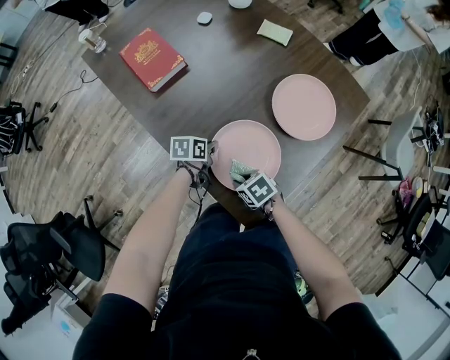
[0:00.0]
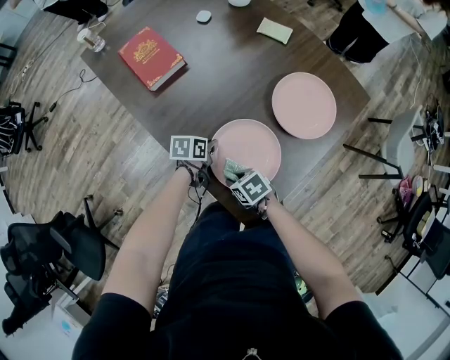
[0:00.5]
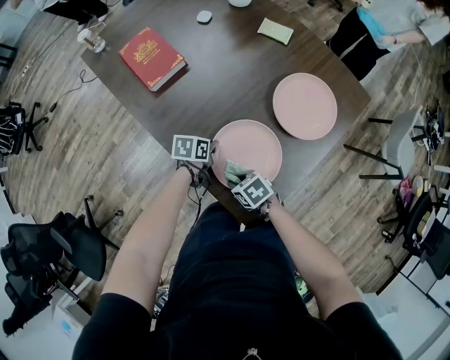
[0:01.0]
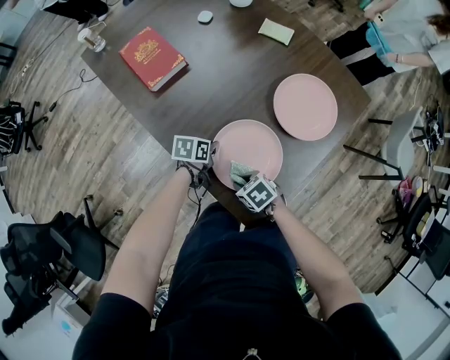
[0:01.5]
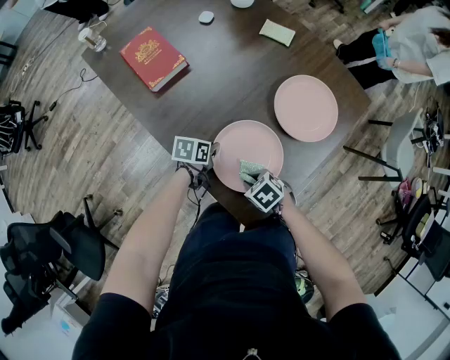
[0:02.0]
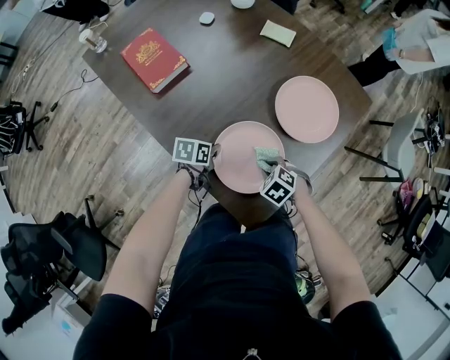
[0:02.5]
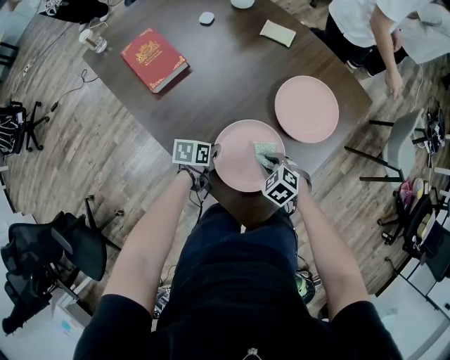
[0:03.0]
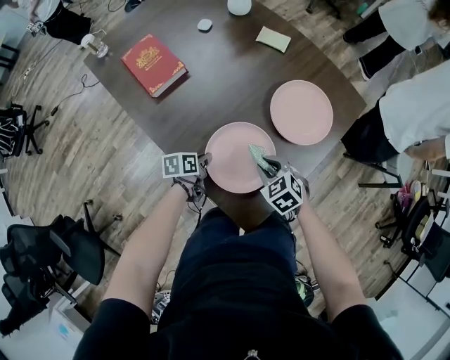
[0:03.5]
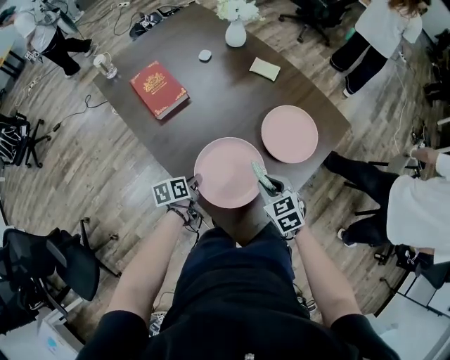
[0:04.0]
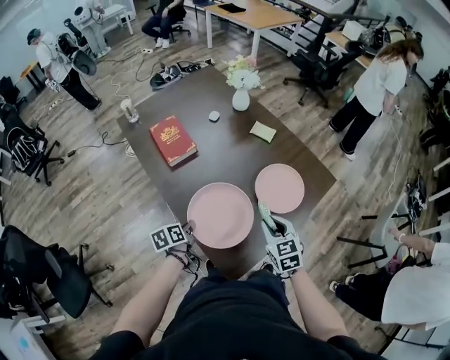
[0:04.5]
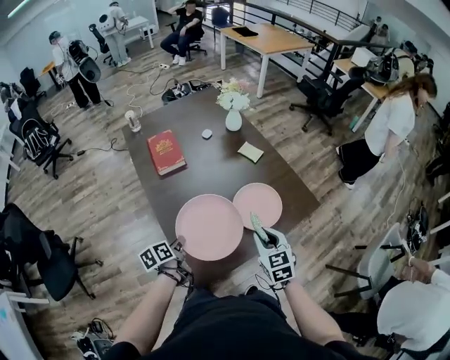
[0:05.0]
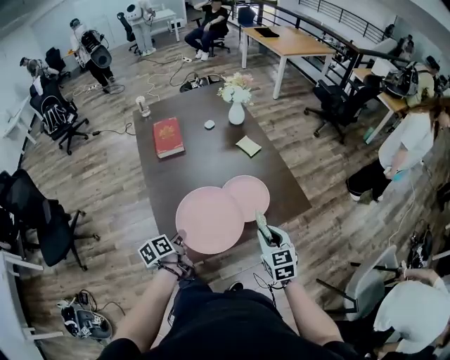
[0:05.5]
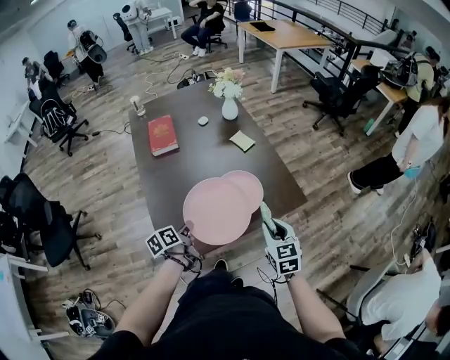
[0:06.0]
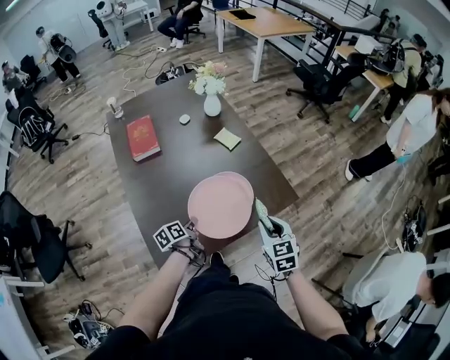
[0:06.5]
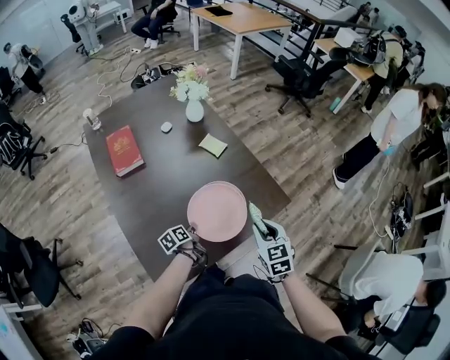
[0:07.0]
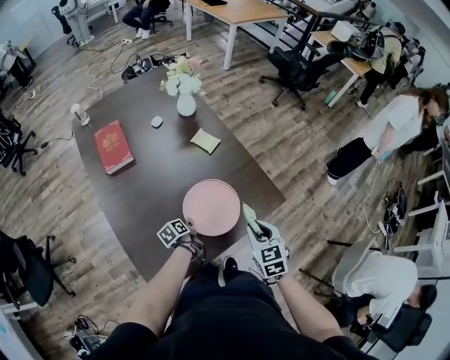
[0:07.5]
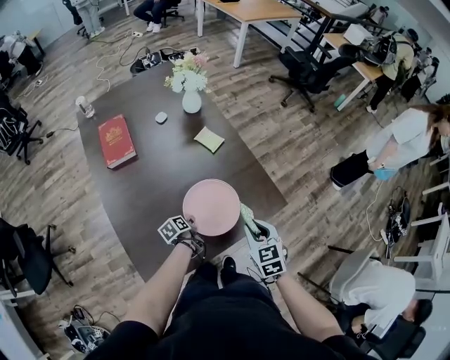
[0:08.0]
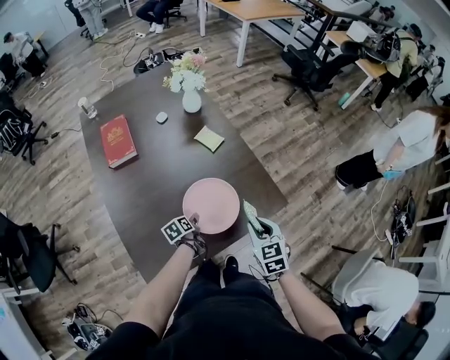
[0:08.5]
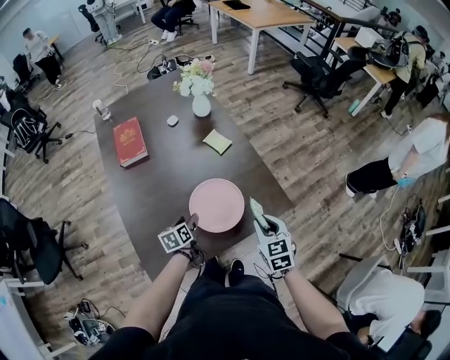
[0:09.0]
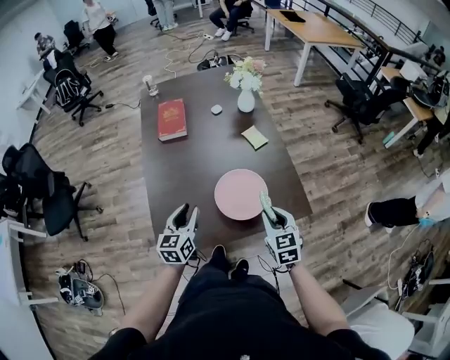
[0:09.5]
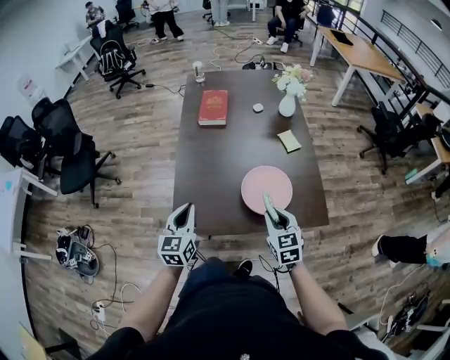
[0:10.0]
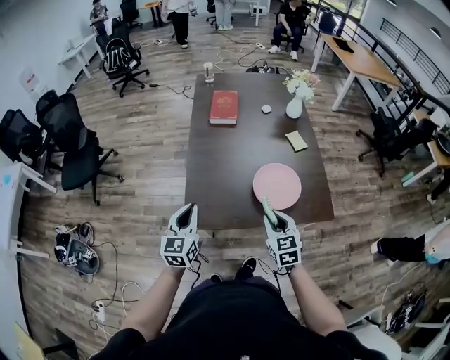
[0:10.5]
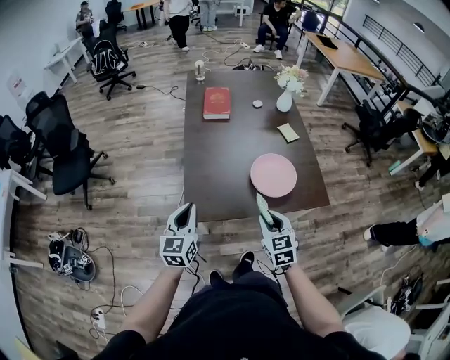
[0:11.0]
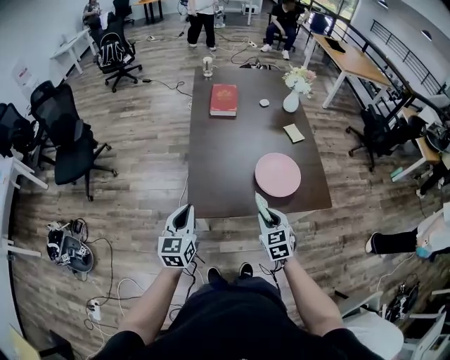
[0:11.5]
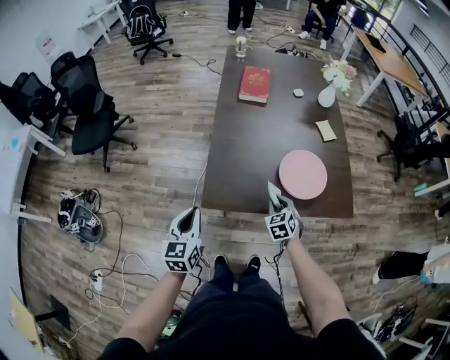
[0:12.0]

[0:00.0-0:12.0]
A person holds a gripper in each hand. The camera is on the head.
0:02.0 to 0:04.0: The right gripper heads upward, covering roughly 15 cm, and turns by approximately 30 degrees.
0:04.0 to 0:06.0: The right gripper ends up approximately 30 cm from where it was.
0:06.0 to 0:08.0: The right gripper shifts by about 10 cm.
0:08.0 to 0:10.0: The right gripper shifts by roughly 10 cm, and rotates approximately 30 degrees.
0:10.0 to 0:12.0: The right gripper goes approximately 15 cm downward, and changes its angle by approximately 20 degrees.

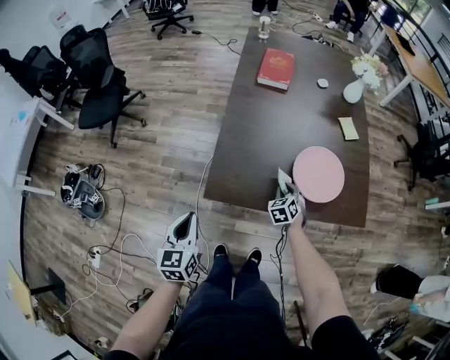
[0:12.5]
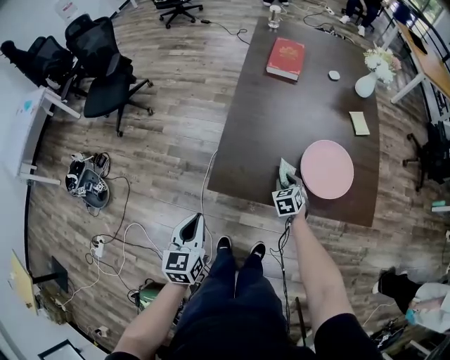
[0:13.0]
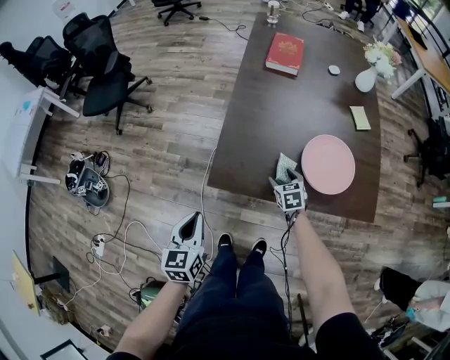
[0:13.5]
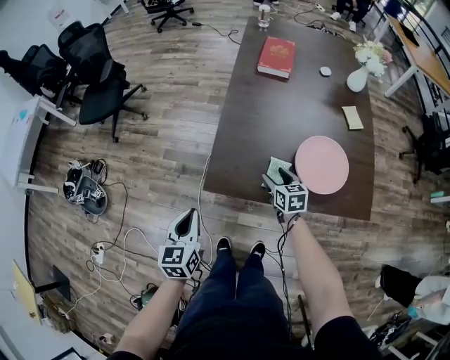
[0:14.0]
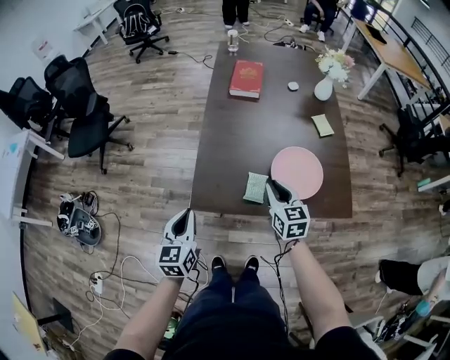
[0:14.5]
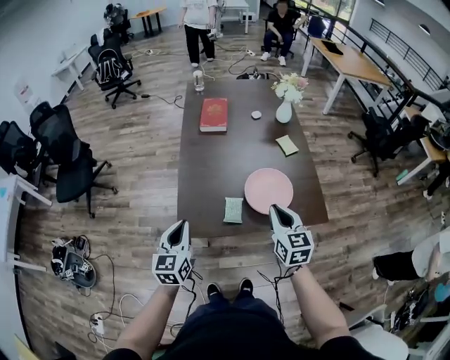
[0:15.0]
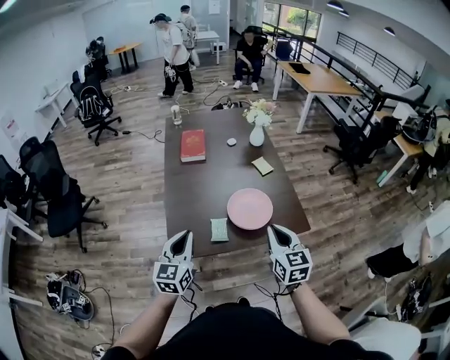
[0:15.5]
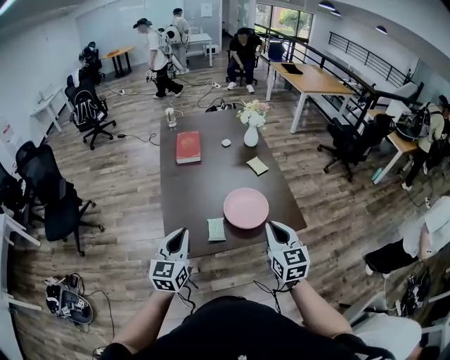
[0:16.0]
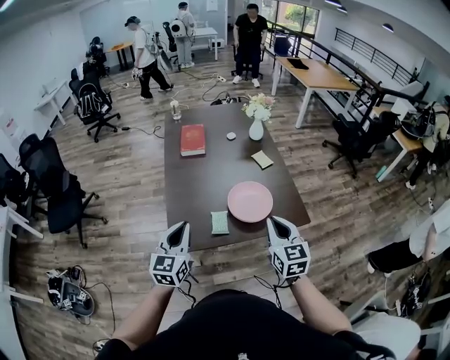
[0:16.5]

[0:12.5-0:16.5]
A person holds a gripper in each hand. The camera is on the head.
0:12.5 to 0:14.5: The right gripper heads upward, covering about 20 cm, turns by some 40 degrees, and opens and closes again.
0:14.5 to 0:16.5: The right gripper heads upward, covering some 20 cm, and rotates some 20 degrees.

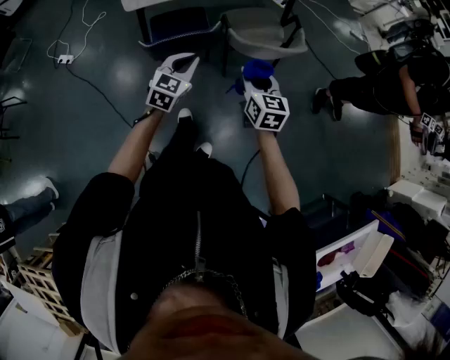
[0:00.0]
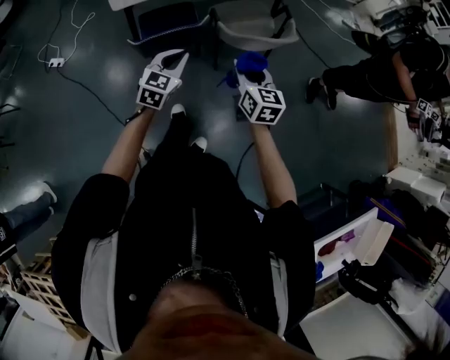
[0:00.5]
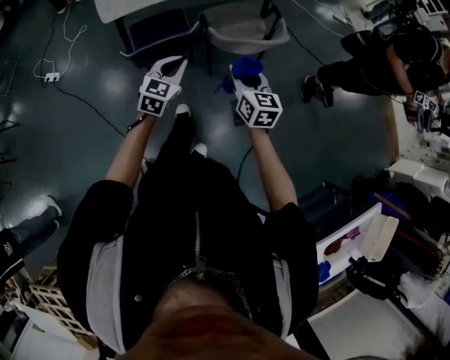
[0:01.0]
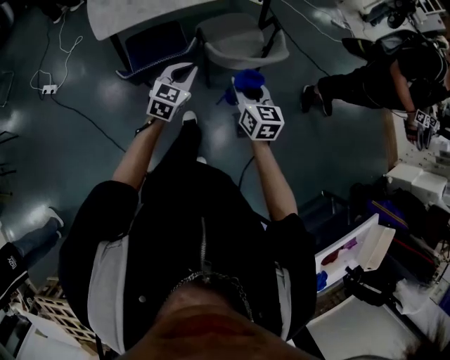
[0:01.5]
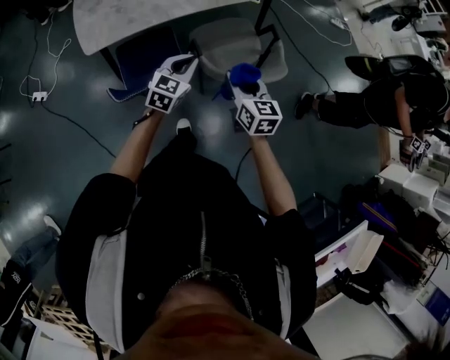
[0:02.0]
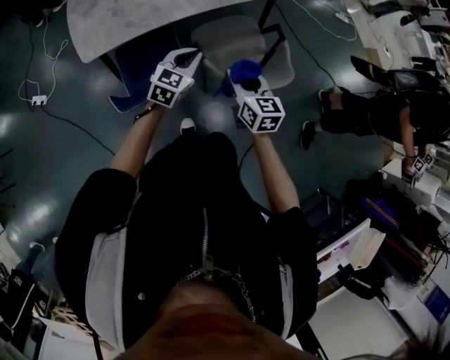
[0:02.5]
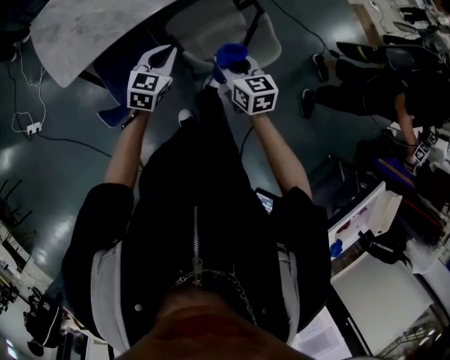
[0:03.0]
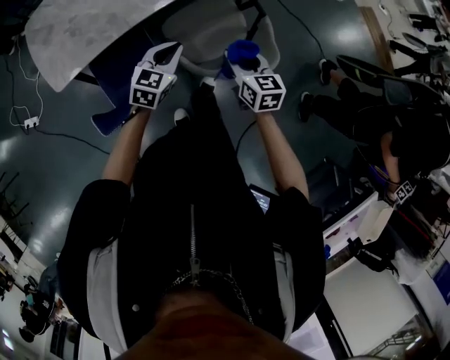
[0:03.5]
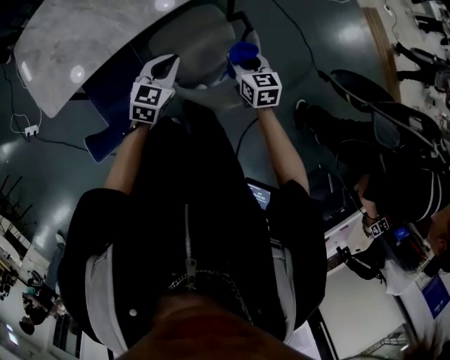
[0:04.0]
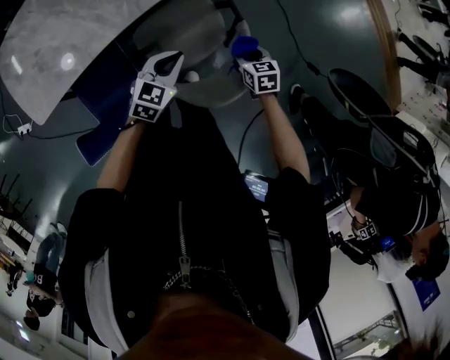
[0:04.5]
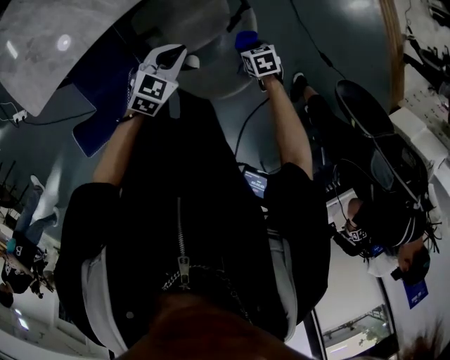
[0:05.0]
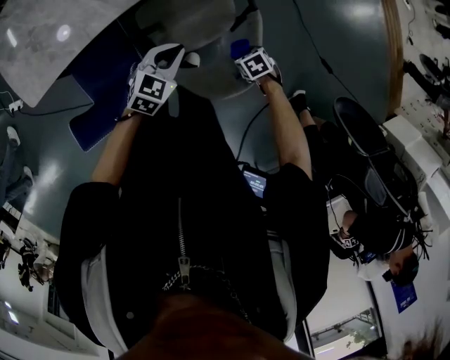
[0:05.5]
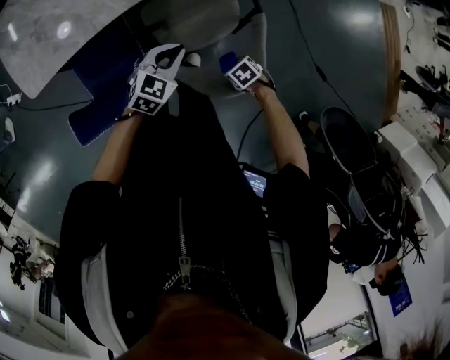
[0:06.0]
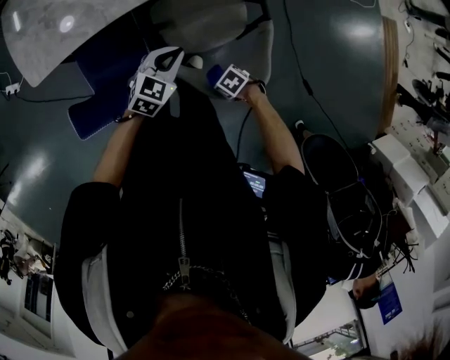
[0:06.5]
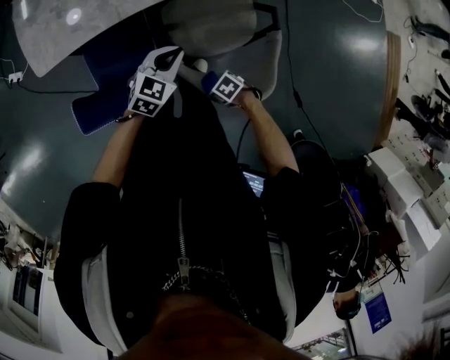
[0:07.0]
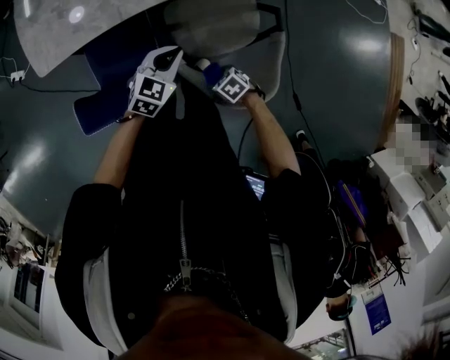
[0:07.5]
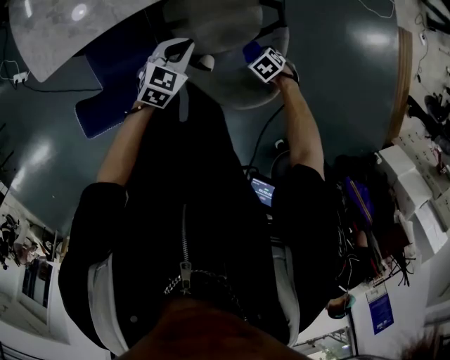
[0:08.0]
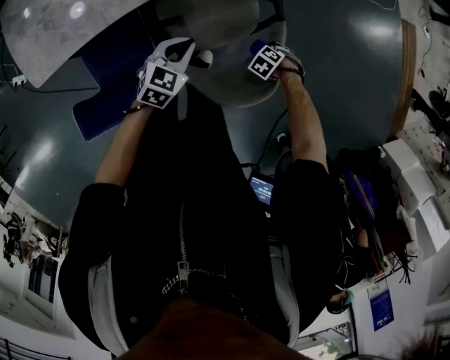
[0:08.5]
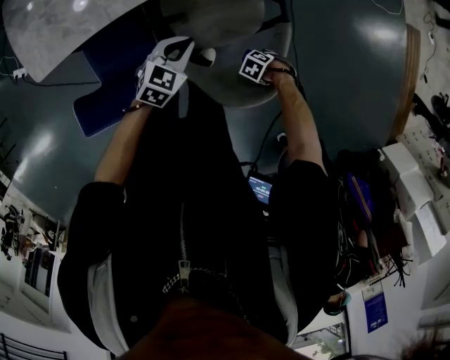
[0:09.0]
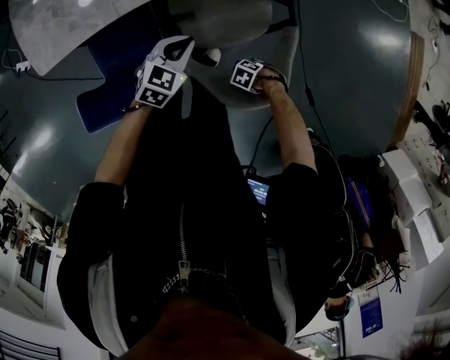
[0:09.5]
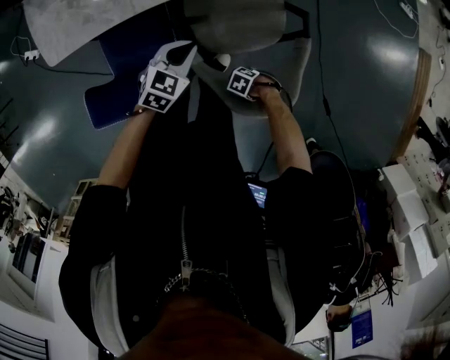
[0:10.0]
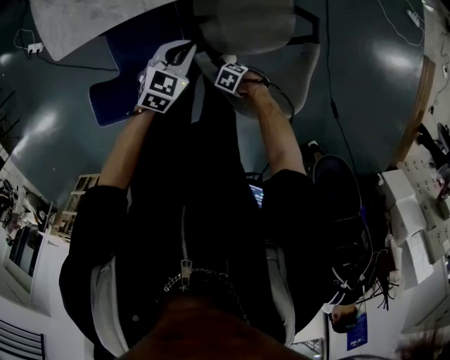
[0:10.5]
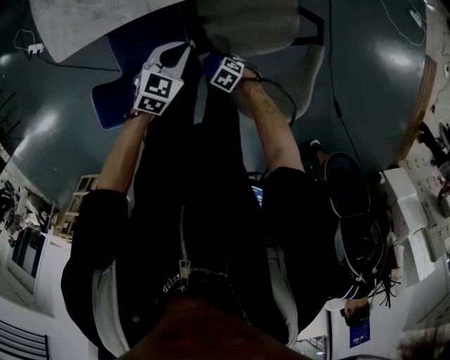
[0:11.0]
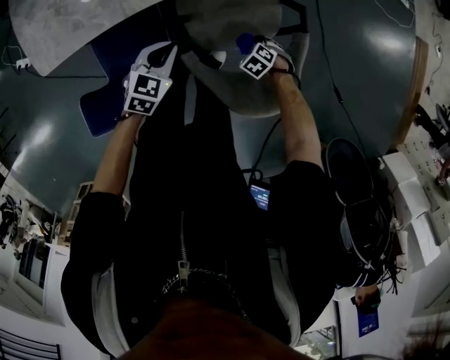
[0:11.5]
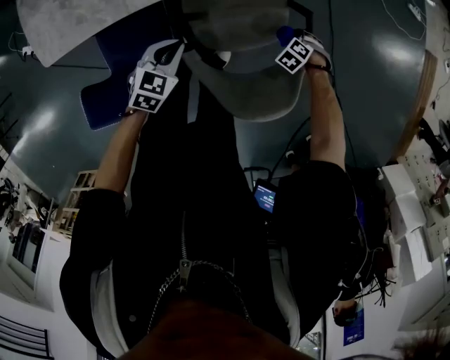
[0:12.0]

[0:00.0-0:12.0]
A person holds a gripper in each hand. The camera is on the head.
0:00.0 to 0:02.0: The left gripper shifts by some 25 cm.
0:02.0 to 0:04.0: The left gripper changes place by about 25 cm.
0:04.0 to 0:06.0: The left gripper is displaced downward by approximately 5 cm.
0:06.0 to 0:08.0: The left gripper ends up roughly 5 cm from where it was.
